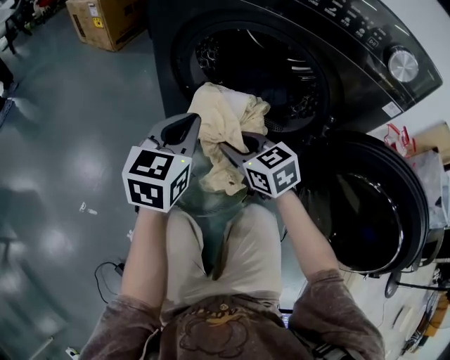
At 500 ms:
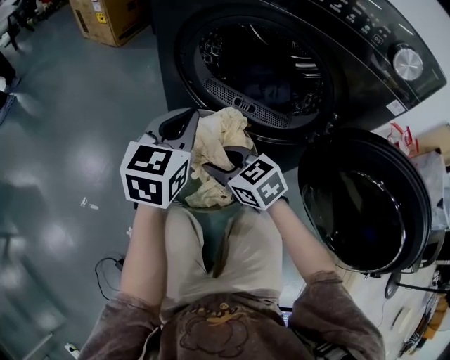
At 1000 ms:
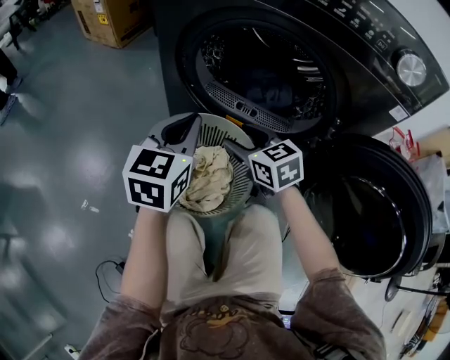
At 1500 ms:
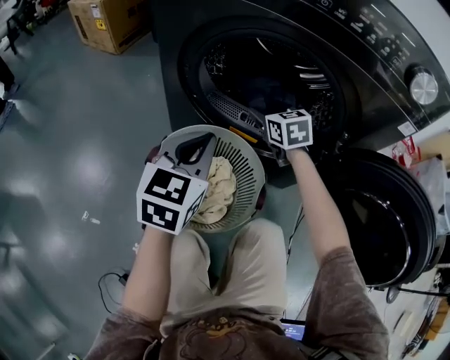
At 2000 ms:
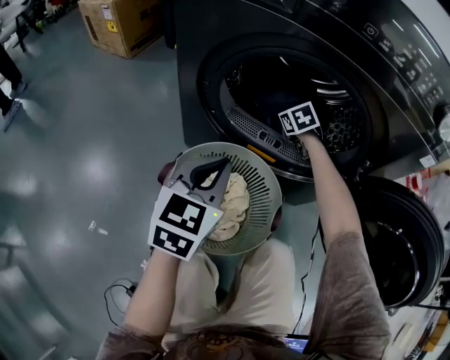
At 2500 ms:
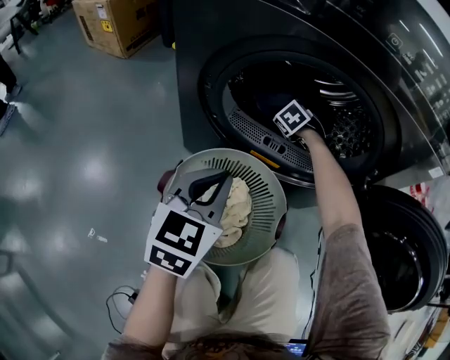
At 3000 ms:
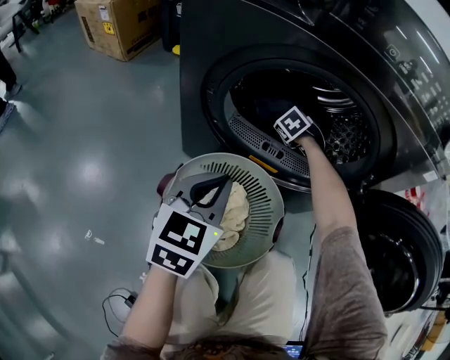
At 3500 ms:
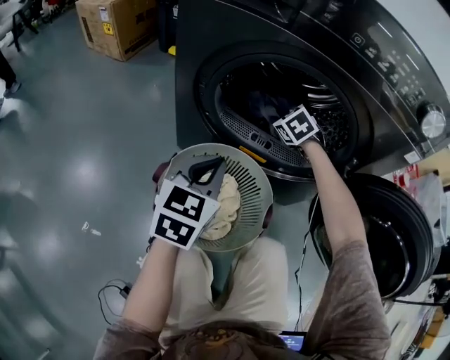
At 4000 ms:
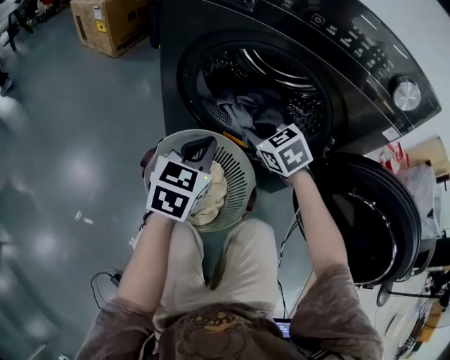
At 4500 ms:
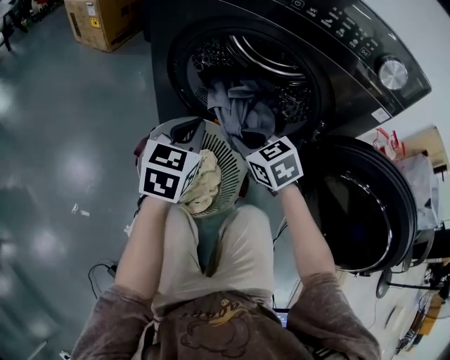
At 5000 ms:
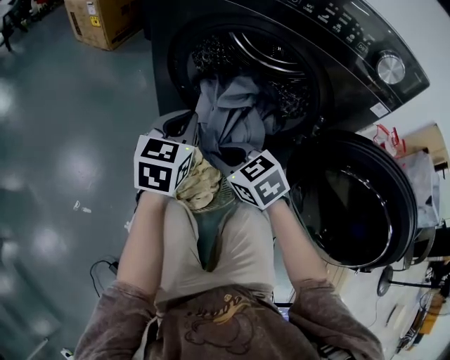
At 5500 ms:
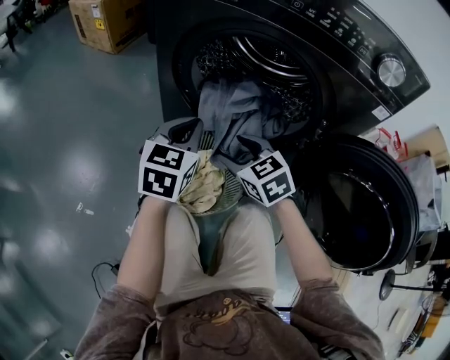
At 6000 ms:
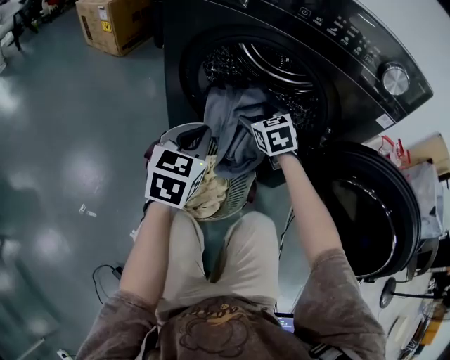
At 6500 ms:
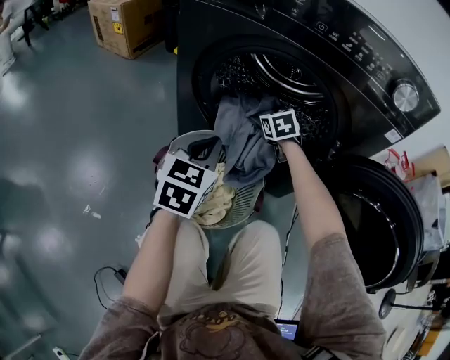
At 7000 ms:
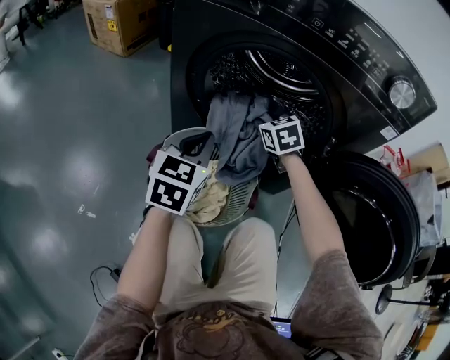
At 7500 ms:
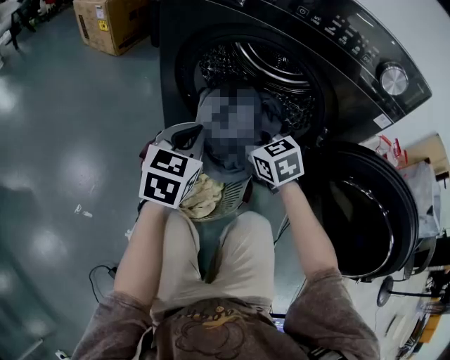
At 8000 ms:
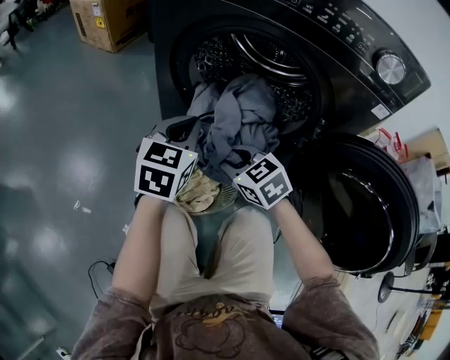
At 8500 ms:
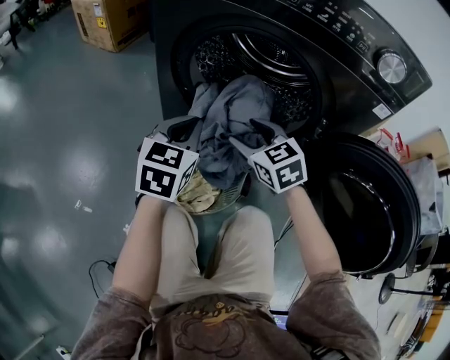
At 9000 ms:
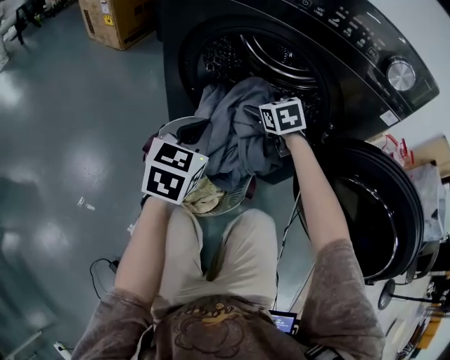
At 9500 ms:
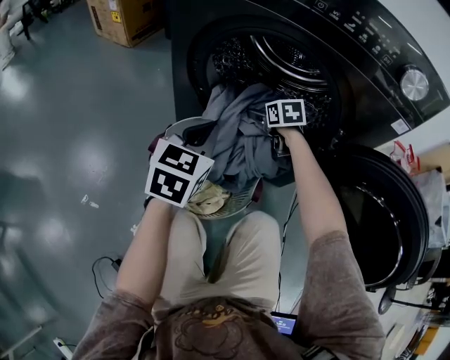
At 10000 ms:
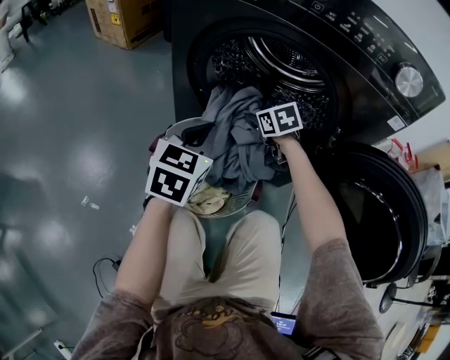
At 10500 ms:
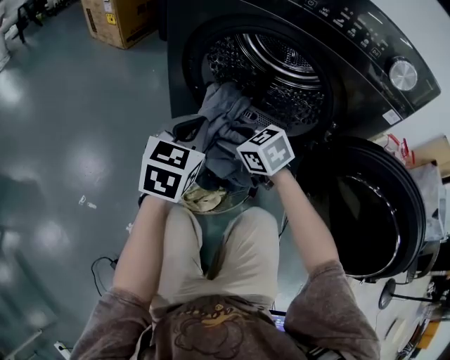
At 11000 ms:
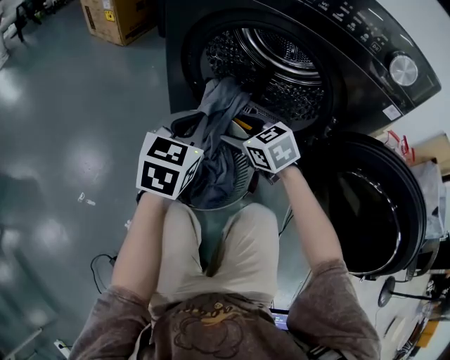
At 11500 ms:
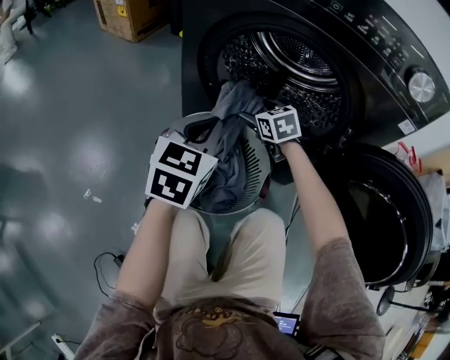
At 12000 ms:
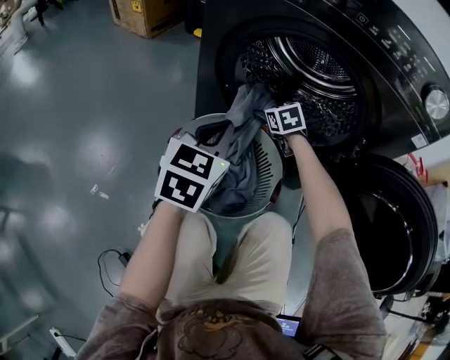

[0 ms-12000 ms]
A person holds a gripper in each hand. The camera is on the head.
0 ms to 2000 ms: The right gripper changes place by some 30 cm, and swivels some 30 degrees.
2000 ms to 4000 ms: The right gripper shifts approximately 20 cm backward and upward, and closes up.
4000 ms to 6000 ms: The right gripper reaches roughly 15 cm backward, then returns, and opens its fingers.
6000 ms to 8000 ms: The right gripper is displaced backward by approximately 15 cm, swivels some 20 degrees, and closes up.
8000 ms to 10000 ms: The right gripper goes approximately 15 cm forward, turns by approximately 20 degrees, and opens, then closes once more.
10000 ms to 12000 ms: The right gripper goes backward and returns, some 10 cm each way, and opens up.

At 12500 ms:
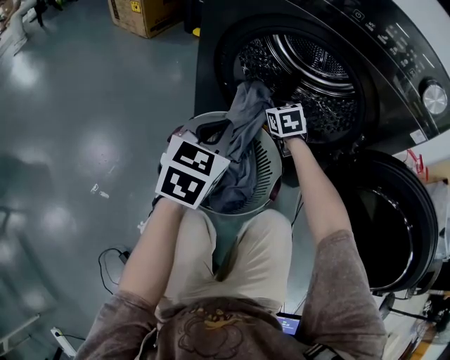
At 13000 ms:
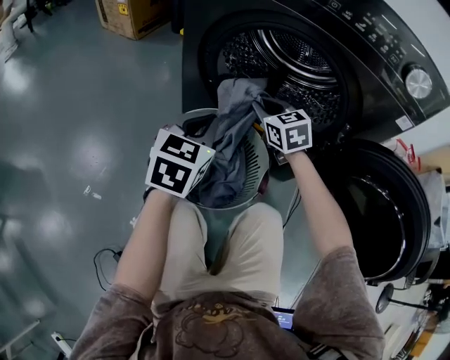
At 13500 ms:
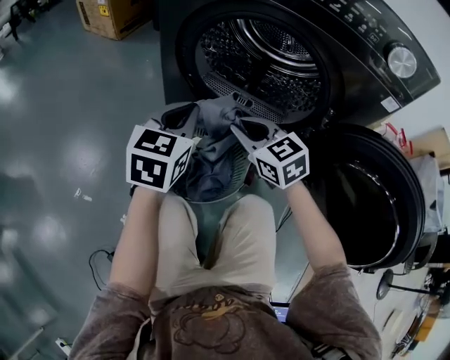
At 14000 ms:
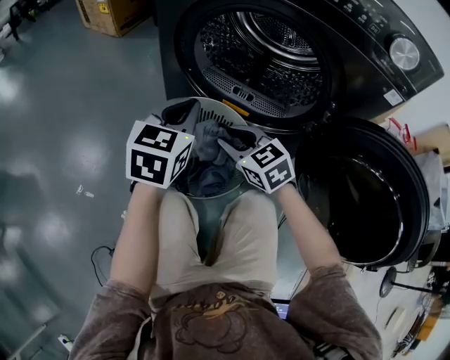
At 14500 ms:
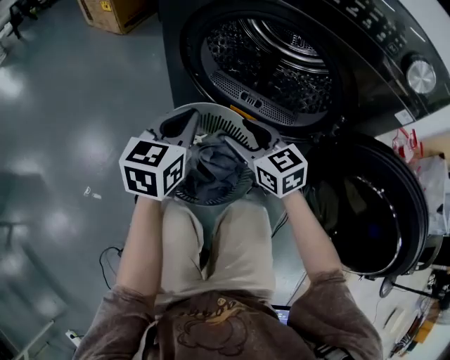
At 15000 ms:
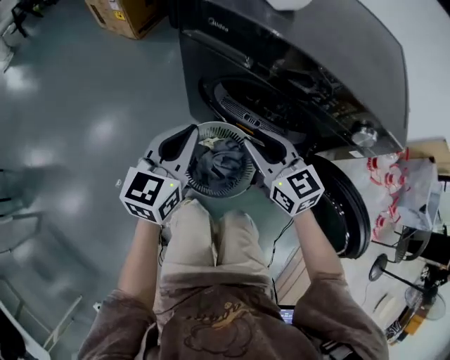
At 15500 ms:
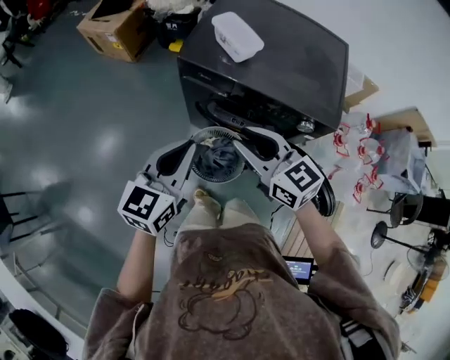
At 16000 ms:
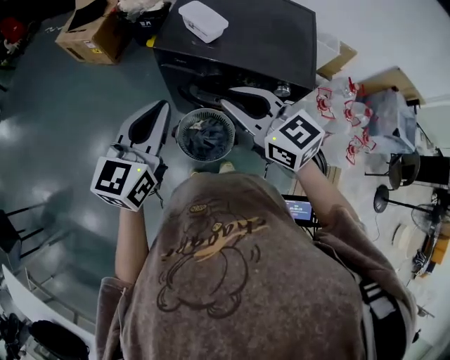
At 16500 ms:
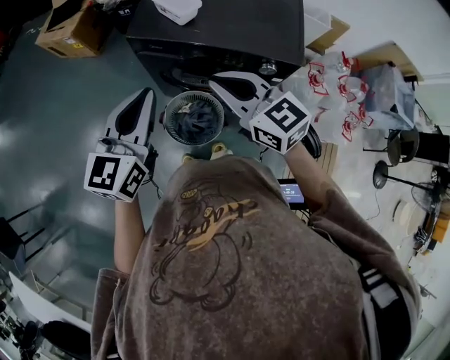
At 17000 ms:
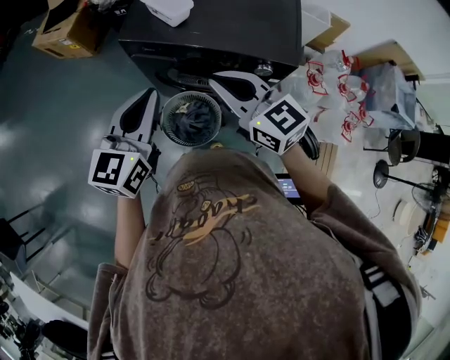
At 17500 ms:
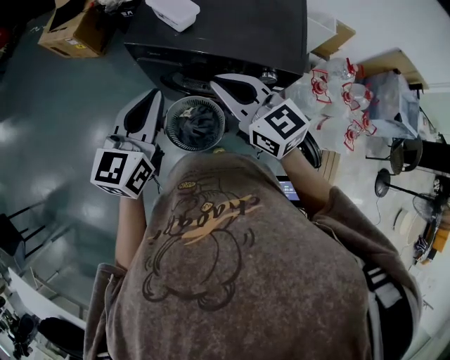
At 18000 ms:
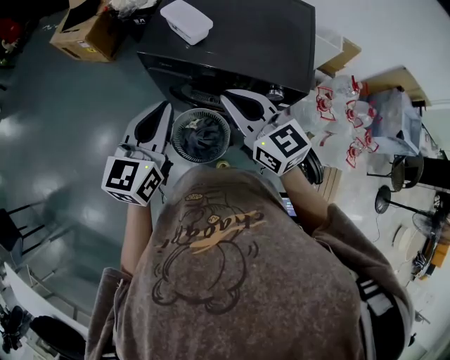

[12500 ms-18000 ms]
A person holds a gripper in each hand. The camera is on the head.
12500 ms to 14500 ms: The right gripper travels backward and upward by about 20 cm, swivels some 30 degrees, and opens its fingers.
14500 ms to 16000 ms: Both grippers travel together upward, about 60 cm. The right gripper closes up.
16000 ms to 18000 ms: Both grippers travel together to the right, roughly 5 cm.

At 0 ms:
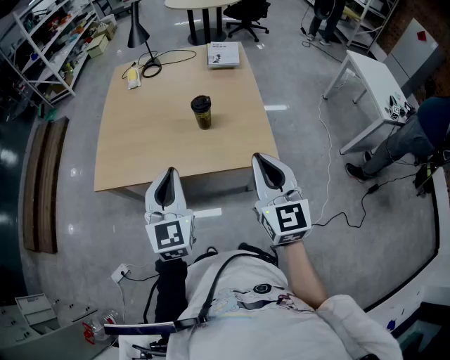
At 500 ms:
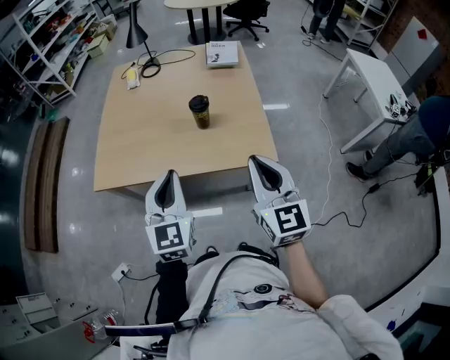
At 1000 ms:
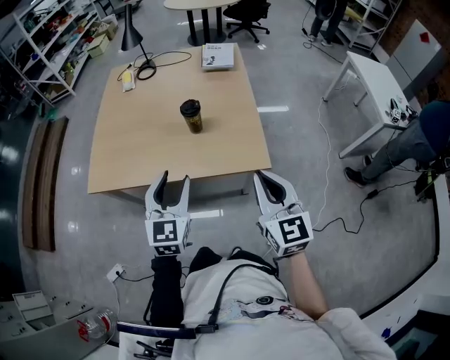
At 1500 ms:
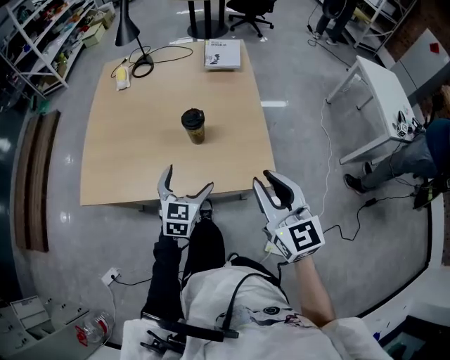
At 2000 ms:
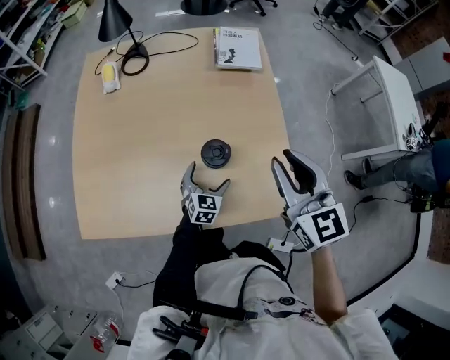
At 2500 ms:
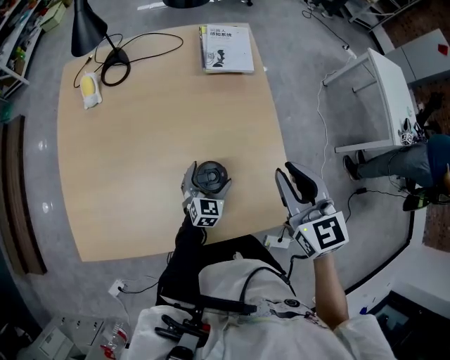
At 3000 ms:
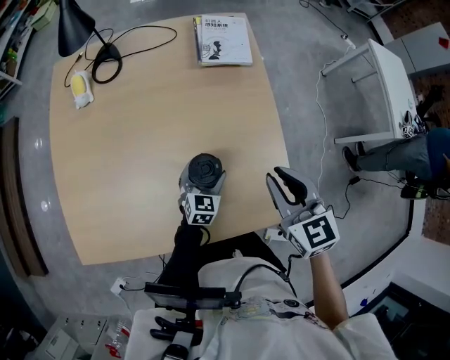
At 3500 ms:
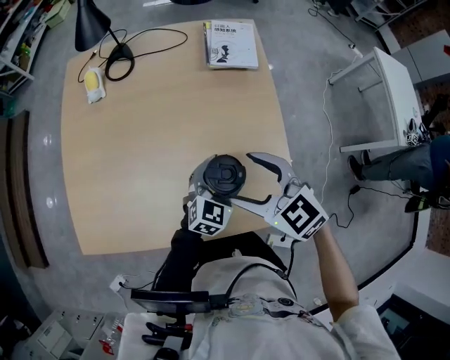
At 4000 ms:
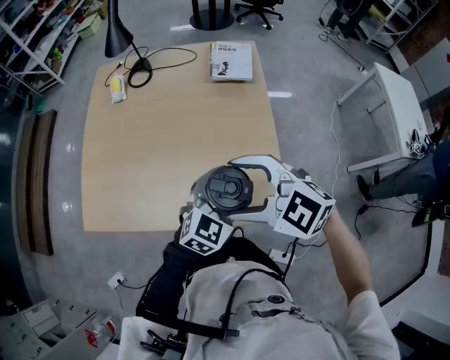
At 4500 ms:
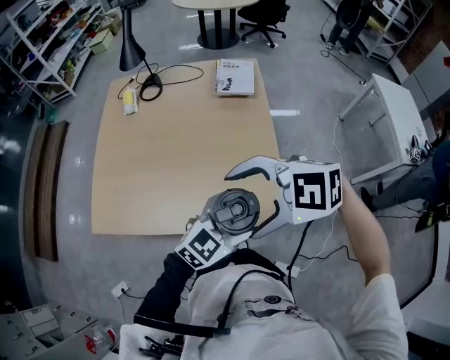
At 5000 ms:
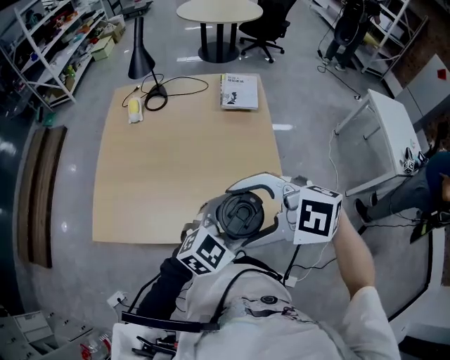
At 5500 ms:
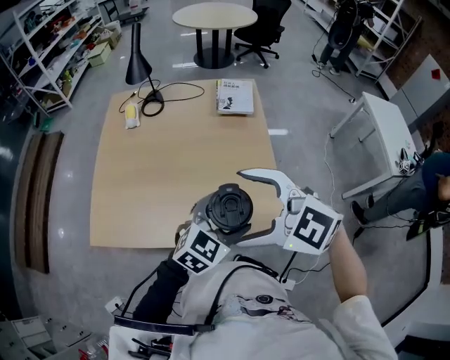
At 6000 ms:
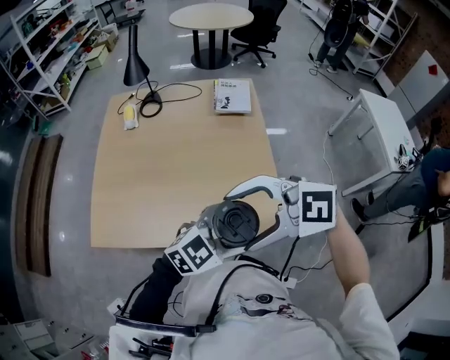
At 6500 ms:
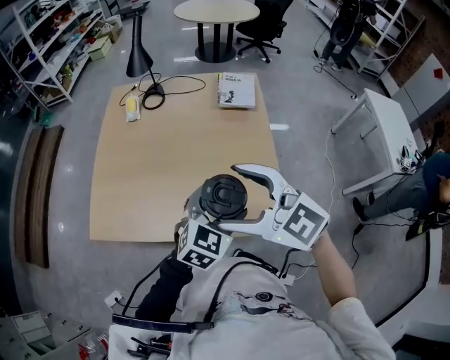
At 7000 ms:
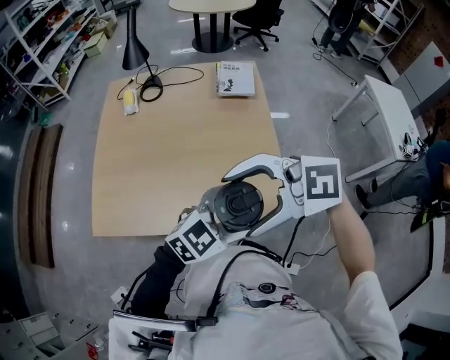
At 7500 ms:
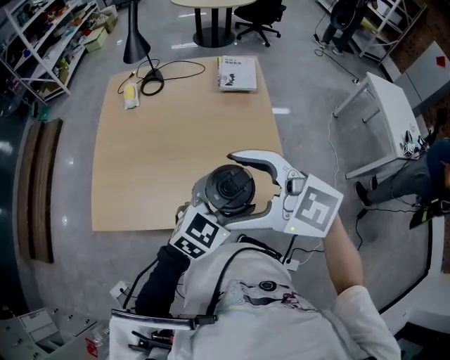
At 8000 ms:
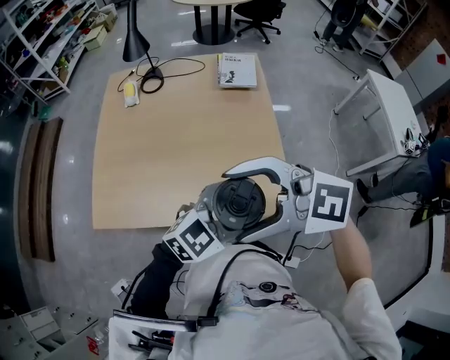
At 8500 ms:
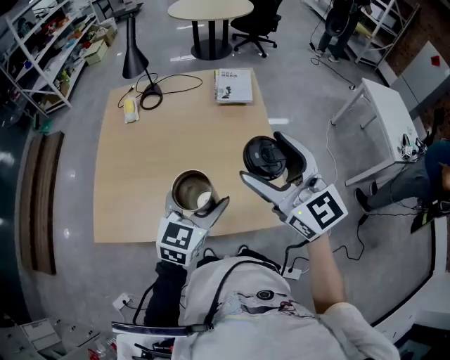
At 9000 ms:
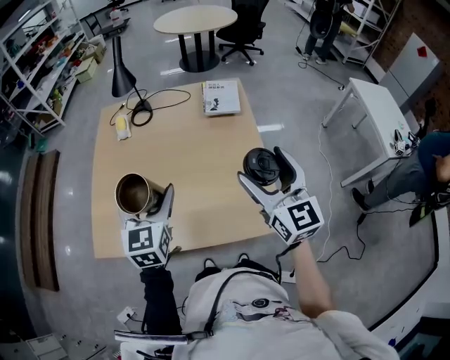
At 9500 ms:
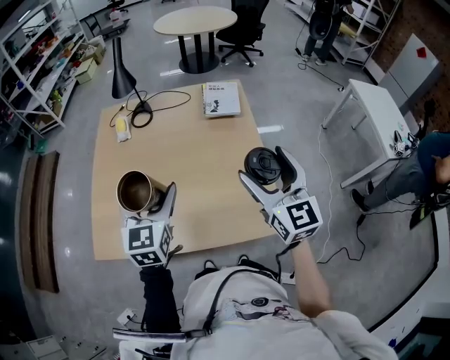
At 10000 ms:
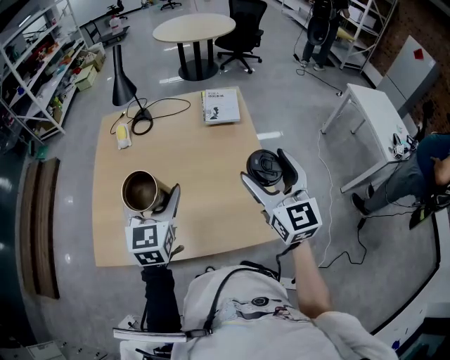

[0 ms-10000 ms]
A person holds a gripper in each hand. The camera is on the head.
0 ms to 2000 ms: The right gripper goes roughly 30 cm forward; the left gripper heads downward and forward, covering roughly 50 cm, changes its angle by some 30 degrees, and opens its fingers.
2000 ms to 4000 ms: The left gripper travels upward and to the right by roughly 25 cm, and swivels roughly 20 degrees. The right gripper heads backward and to the left, covering approximately 10 cm, turns by approximately 60 degrees, and opens its fingers.
4000 ms to 6000 ms: The left gripper ends up roughly 15 cm from where it was, and turns by about 30 degrees, while the right gripper shifts by approximately 10 cm, and rotates approximately 30 degrees.
8000 ms to 10000 ms: The left gripper moves some 25 cm, and swivels about 60 degrees; the right gripper ends up roughly 20 cm from where it was, and swivels roughly 80 degrees.
